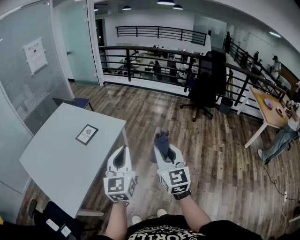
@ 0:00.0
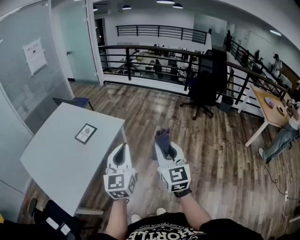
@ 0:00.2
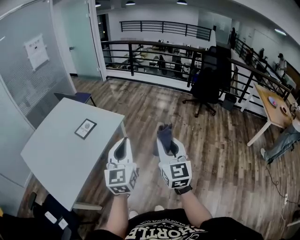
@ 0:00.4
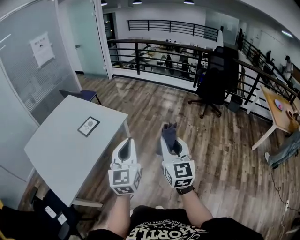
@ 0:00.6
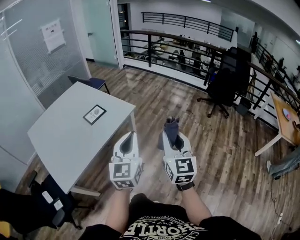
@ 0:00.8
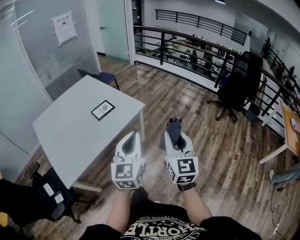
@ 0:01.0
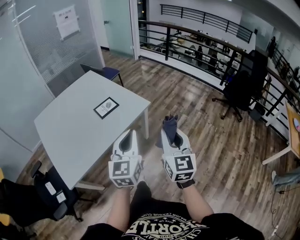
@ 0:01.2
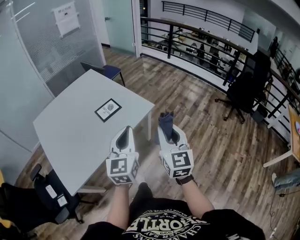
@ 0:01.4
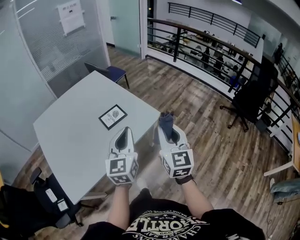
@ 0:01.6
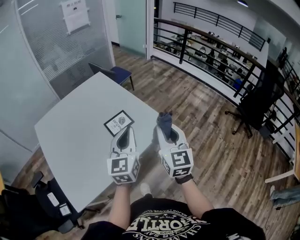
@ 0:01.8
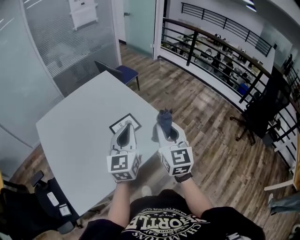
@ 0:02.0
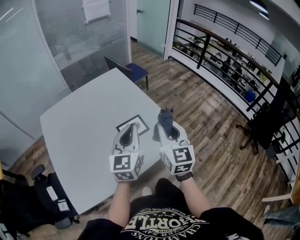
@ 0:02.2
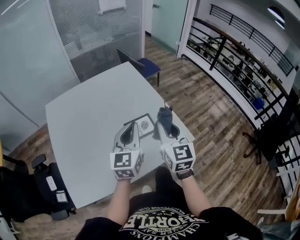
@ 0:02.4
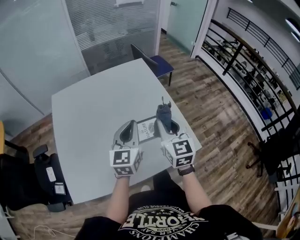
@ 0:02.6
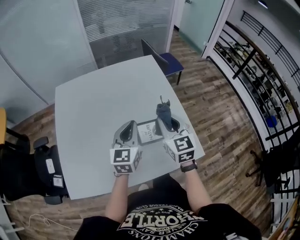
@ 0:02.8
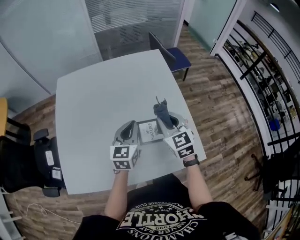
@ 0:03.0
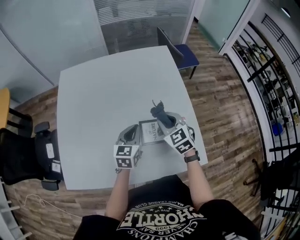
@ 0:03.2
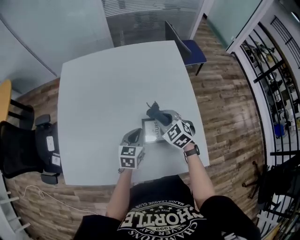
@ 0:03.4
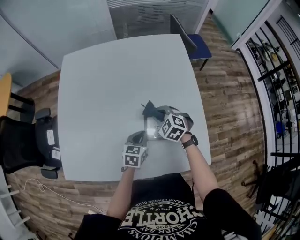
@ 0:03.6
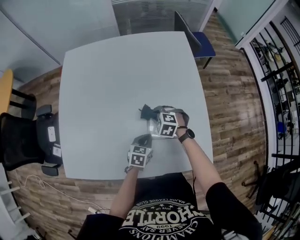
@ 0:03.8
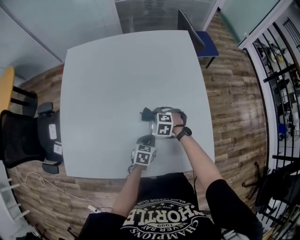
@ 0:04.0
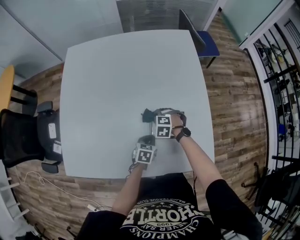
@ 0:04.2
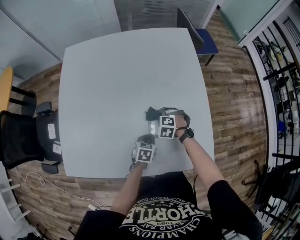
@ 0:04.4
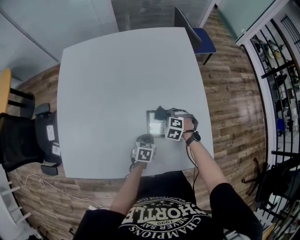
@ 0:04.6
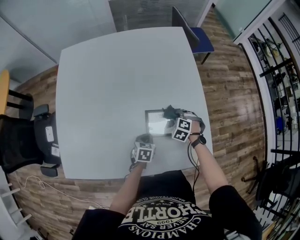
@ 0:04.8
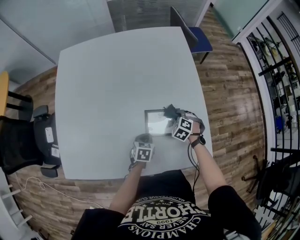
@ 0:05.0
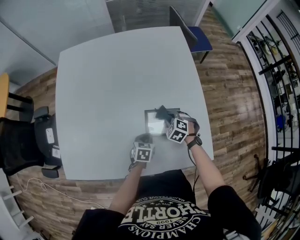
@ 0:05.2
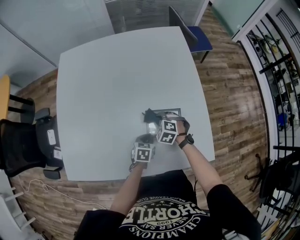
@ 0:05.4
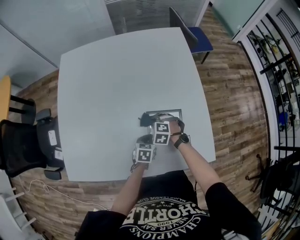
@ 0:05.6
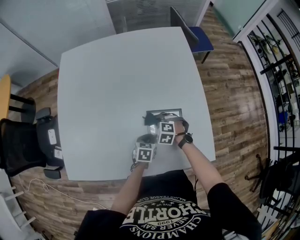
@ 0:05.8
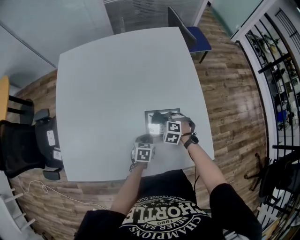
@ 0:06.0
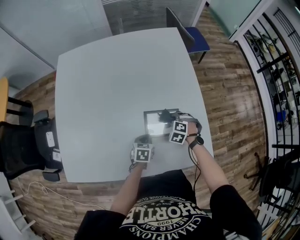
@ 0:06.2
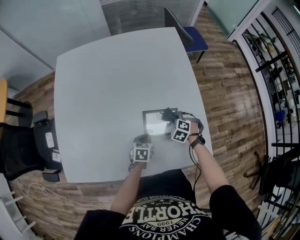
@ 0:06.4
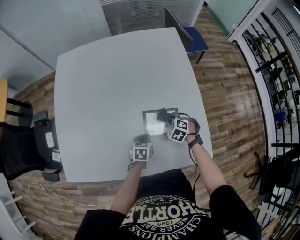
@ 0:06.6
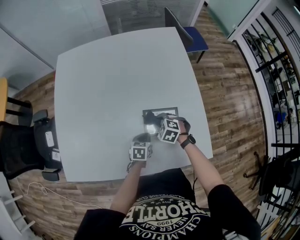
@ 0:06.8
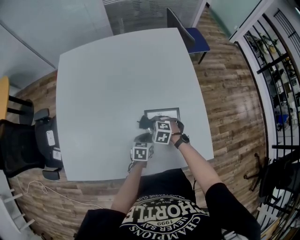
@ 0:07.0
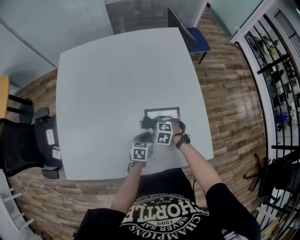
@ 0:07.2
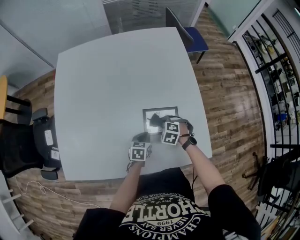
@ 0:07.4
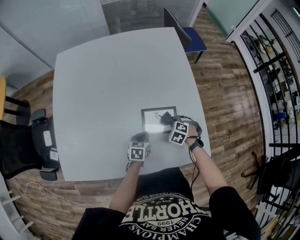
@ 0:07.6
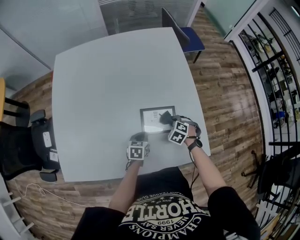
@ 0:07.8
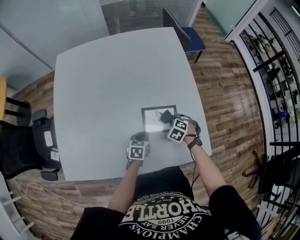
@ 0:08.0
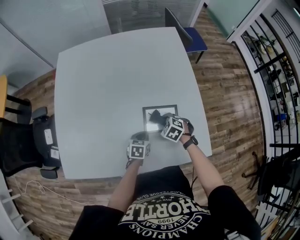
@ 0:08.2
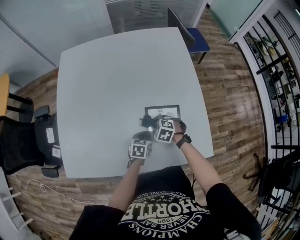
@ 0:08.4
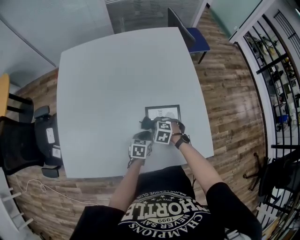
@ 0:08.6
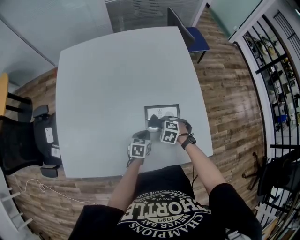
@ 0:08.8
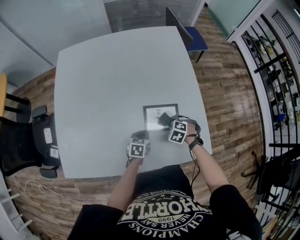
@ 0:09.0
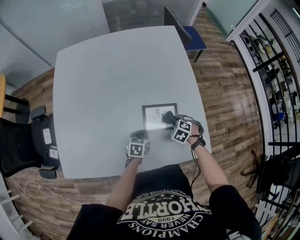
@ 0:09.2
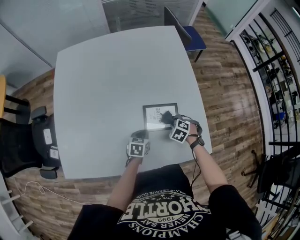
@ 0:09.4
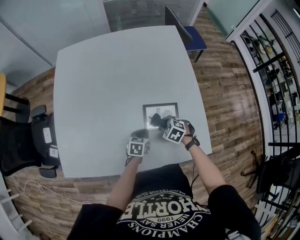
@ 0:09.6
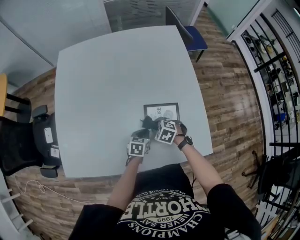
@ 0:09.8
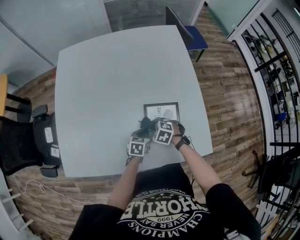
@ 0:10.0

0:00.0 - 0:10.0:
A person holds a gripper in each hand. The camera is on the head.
0:00.0 - 0:01.4: Both grippers travel together forward, approximately 15 cm.
0:01.4 - 0:02.8: The two grippers travel together, roughly 50 cm. The left gripper rotates approximately 30 degrees; the right gripper rotates roughly 40 degrees.
0:02.8 - 0:04.2: The two grippers go about 35 cm downward. The right gripper points its fingers roughly 60 degrees further downward, while the left gripper angles its fingers downward, by about 40 degrees.
0:04.2 - 0:05.8: The right gripper reaches approximately 15 cm to the right, then returns.
0:05.8 - 0:07.2: The right gripper moves approximately 10 cm to the right and comes back.

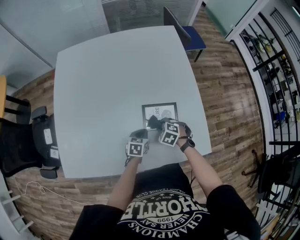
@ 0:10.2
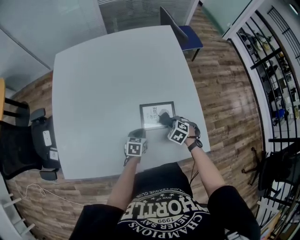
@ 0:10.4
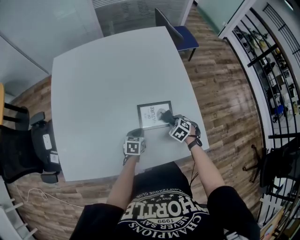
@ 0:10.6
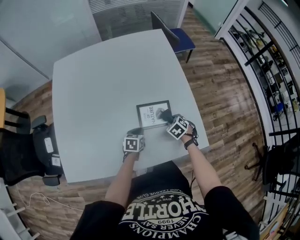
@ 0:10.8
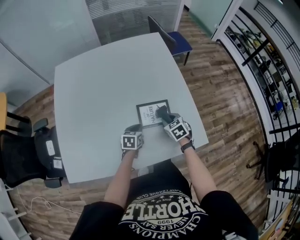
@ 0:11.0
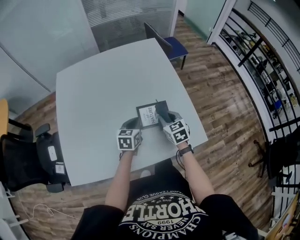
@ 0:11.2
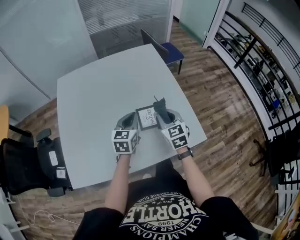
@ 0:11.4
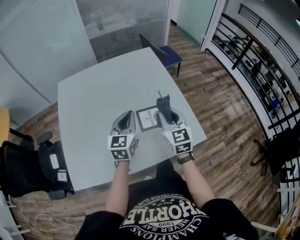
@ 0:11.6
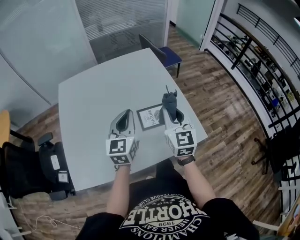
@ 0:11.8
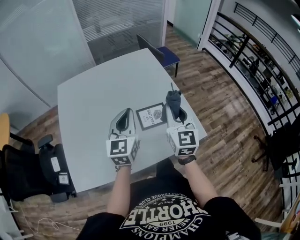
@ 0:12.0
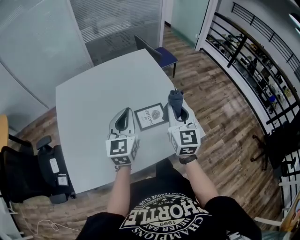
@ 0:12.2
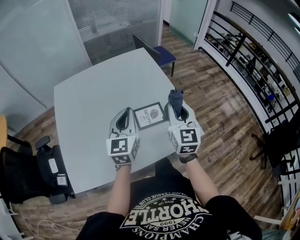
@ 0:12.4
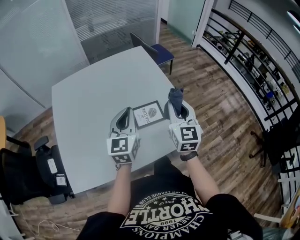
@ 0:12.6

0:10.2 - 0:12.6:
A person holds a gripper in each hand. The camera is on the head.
0:10.2 - 0:11.4: Both grippers move upward, roughly 25 cm. The right gripper points its fingers roughly 40 degrees further upward; the left gripper turns by some 30 degrees.
0:11.4 - 0:12.6: The left gripper travels upward by about 10 cm. Meanwhile the right gripper travels upward and to the right by some 15 cm, and swivels about 30 degrees.

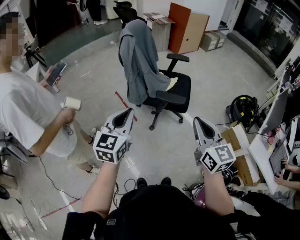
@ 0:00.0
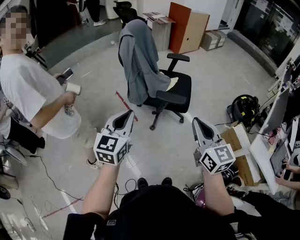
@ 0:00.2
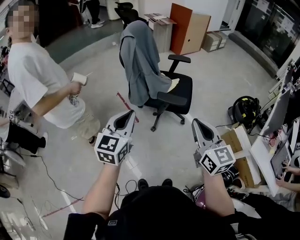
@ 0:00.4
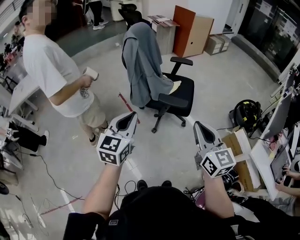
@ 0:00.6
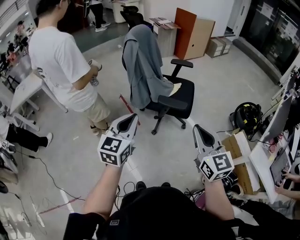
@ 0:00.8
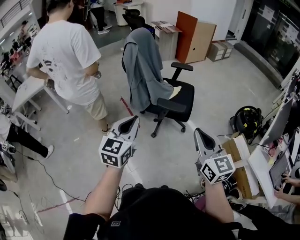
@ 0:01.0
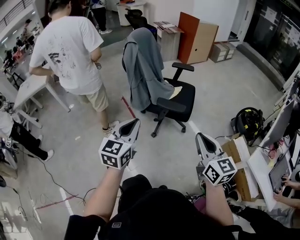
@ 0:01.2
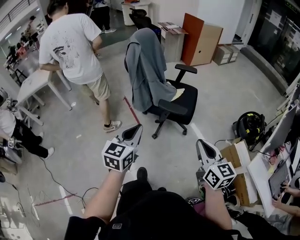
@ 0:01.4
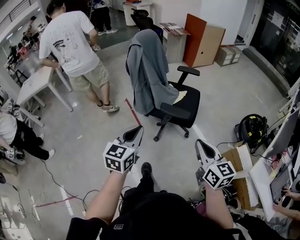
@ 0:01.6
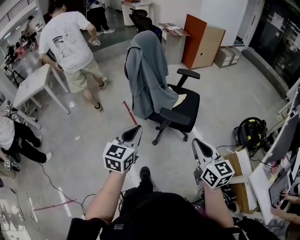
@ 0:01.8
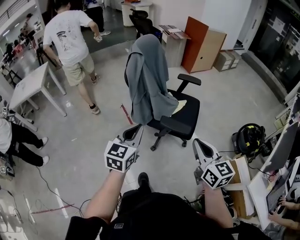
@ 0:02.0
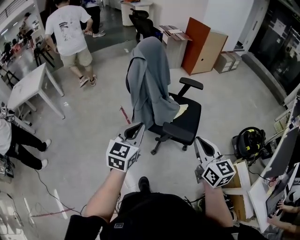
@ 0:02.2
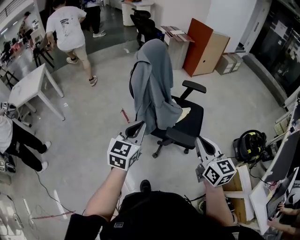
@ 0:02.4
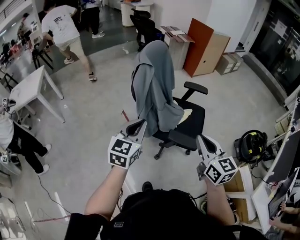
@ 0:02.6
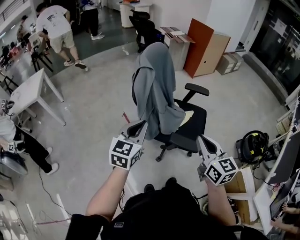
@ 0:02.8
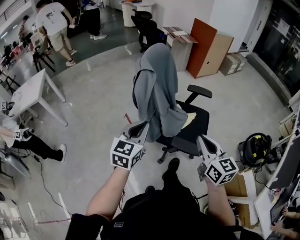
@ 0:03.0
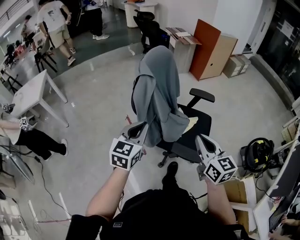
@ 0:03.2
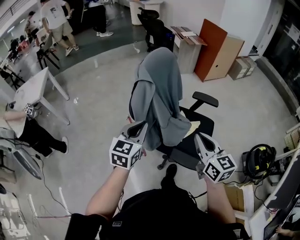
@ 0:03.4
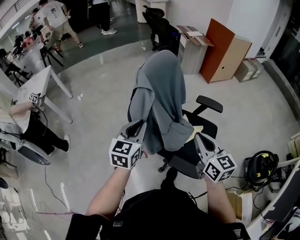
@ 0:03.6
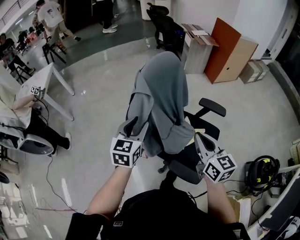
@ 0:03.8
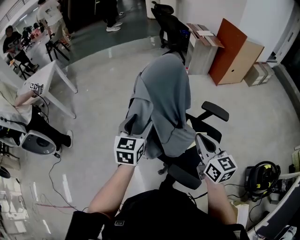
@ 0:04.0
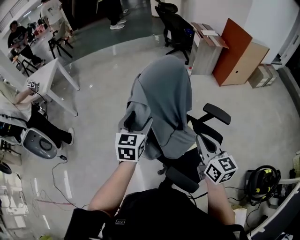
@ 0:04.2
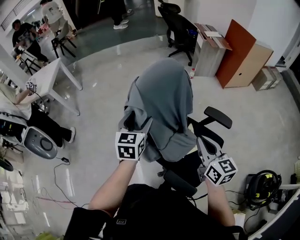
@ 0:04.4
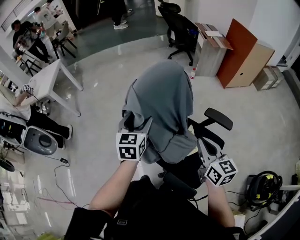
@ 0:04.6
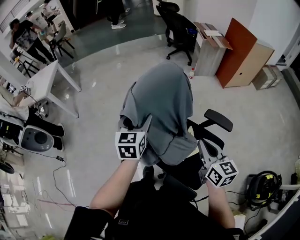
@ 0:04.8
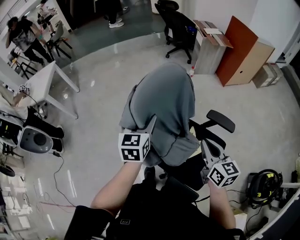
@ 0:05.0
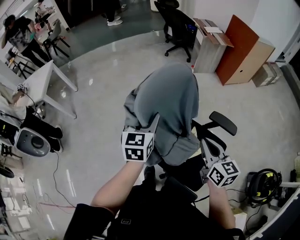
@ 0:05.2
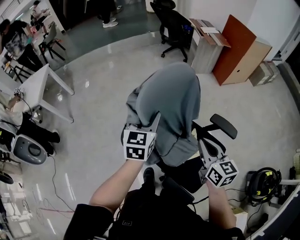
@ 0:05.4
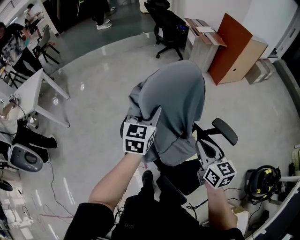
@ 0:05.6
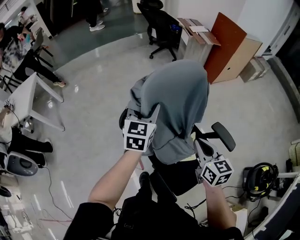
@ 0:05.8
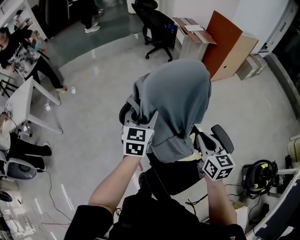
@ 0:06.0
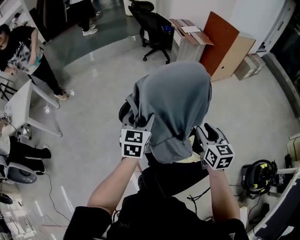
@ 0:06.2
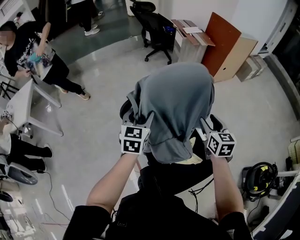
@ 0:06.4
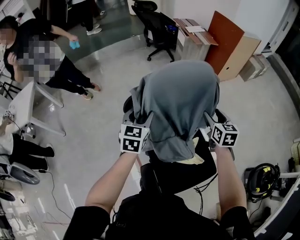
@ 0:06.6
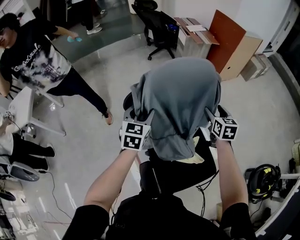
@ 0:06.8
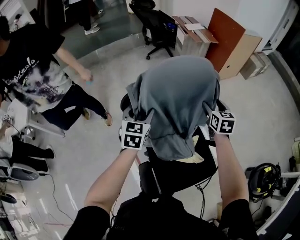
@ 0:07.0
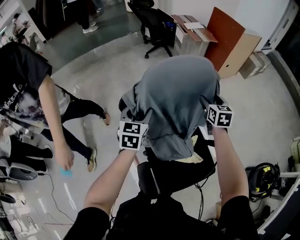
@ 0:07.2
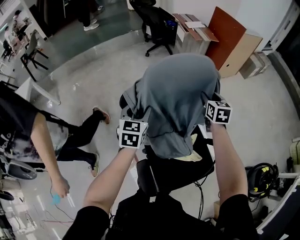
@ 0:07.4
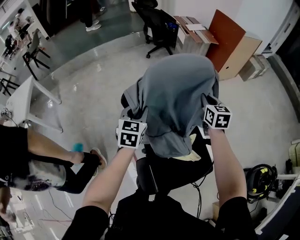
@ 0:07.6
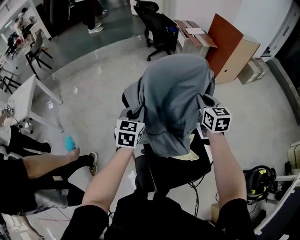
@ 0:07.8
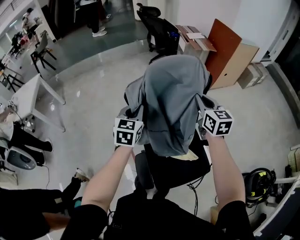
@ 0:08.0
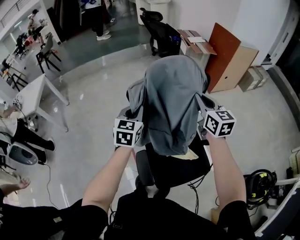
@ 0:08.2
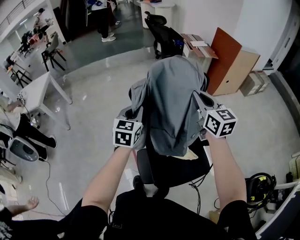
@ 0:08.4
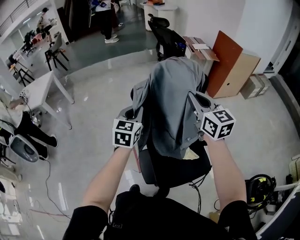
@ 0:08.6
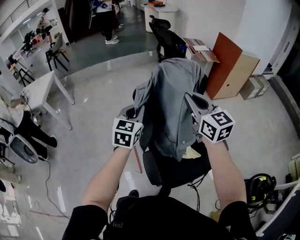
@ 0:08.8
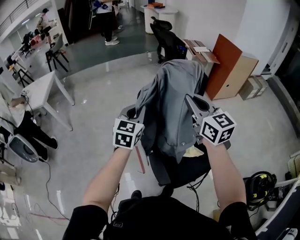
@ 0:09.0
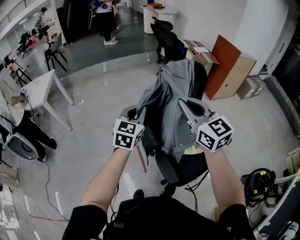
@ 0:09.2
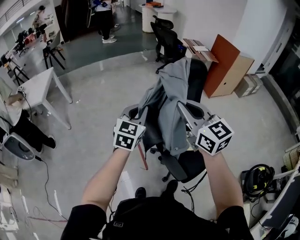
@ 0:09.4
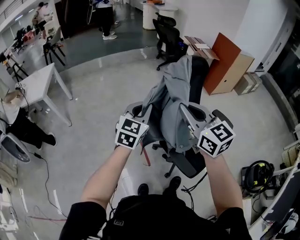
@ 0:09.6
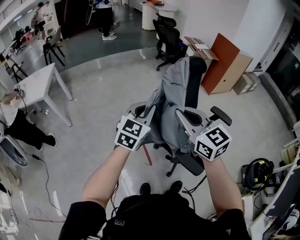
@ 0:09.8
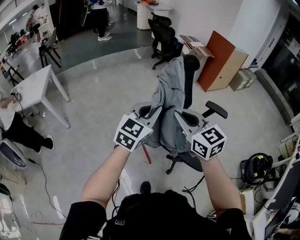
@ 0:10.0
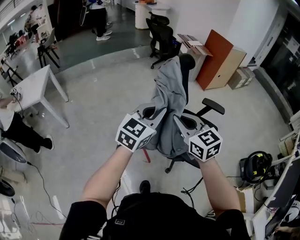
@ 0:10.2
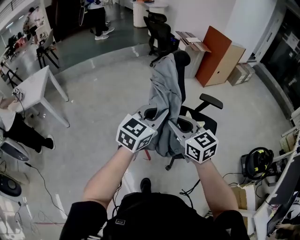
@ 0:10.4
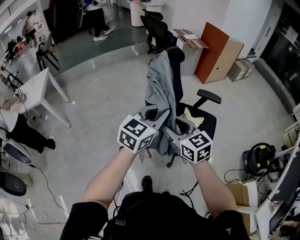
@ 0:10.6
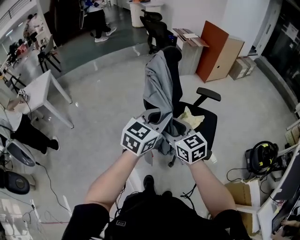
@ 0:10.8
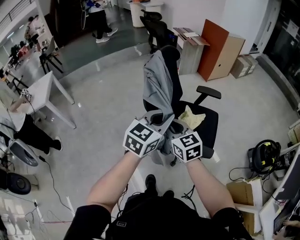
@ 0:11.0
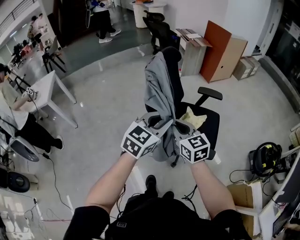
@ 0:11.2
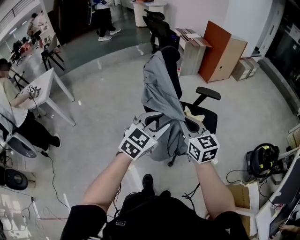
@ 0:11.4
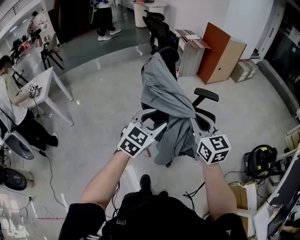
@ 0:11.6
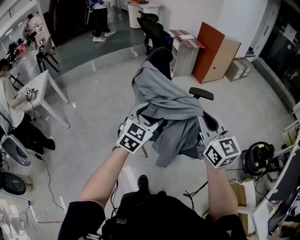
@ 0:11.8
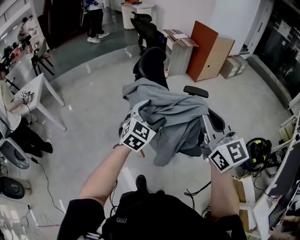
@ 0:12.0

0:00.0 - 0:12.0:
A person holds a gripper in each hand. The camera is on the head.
0:00.0 - 0:01.6: The grippers both shift to the right and downward by about 10 cm.
0:01.6 - 0:03.0: The two grippers go roughly 30 cm forward.
0:03.0 - 0:04.4: The two grippers go some 30 cm forward. The left gripper turns by roughly 30 degrees, and opens.
0:04.4 - 0:06.0: The right gripper shifts some 15 cm forward. Meanwhile the left gripper moves forward and to the right, some 20 cm.
0:06.0 - 0:07.6: The left gripper heads forward, covering some 5 cm; the right gripper heads forward, covering roughly 20 cm, and opens, then closes once more.
0:07.6 - 0:09.0: The left gripper goes some 25 cm backward, upward and to the left; the right gripper moves backward, upward and to the left, some 40 cm, and swivels some 40 degrees.
0:09.0 - 0:10.4: The left gripper moves backward, some 20 cm, and swivels about 30 degrees; the right gripper shifts about 30 cm to the left, backward and downward.
0:10.4 - 0:12.0: The right gripper moves to the right and upward, approximately 25 cm, rotates roughly 30 degrees, and opens, then closes again; the left gripper moves to the right and downward, about 10 cm, changes its angle by some 30 degrees, and opens its fingers.
